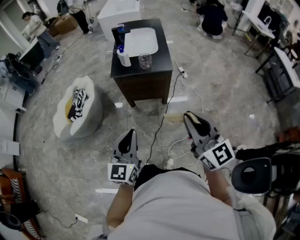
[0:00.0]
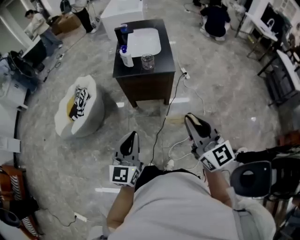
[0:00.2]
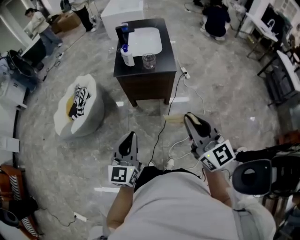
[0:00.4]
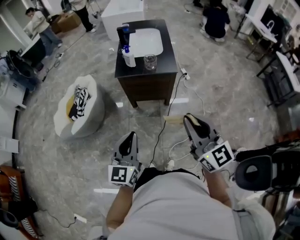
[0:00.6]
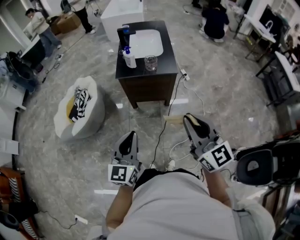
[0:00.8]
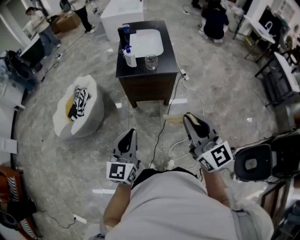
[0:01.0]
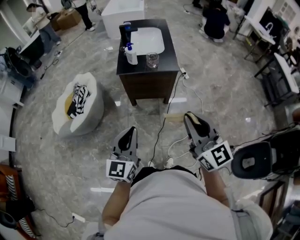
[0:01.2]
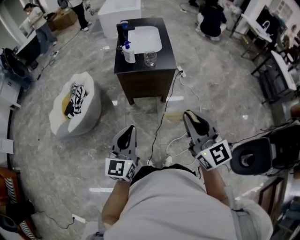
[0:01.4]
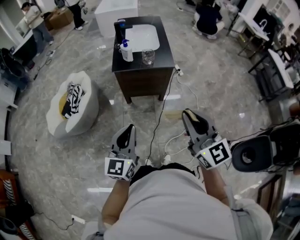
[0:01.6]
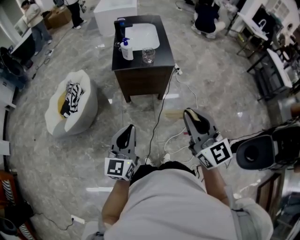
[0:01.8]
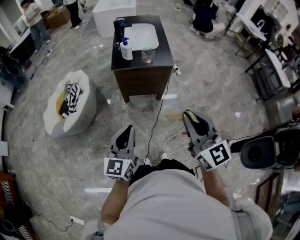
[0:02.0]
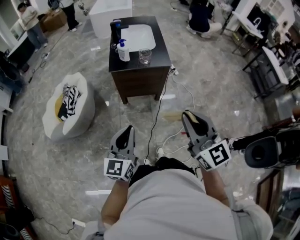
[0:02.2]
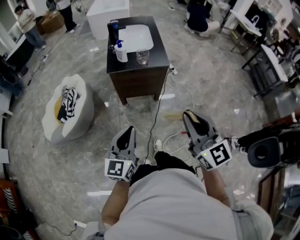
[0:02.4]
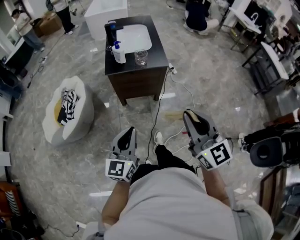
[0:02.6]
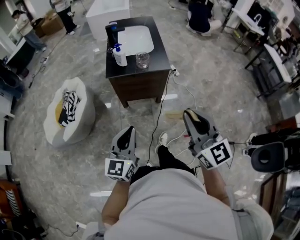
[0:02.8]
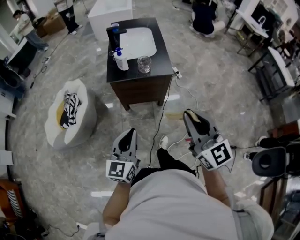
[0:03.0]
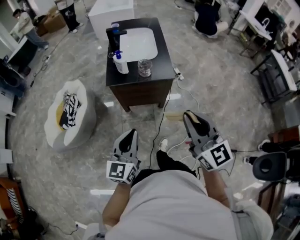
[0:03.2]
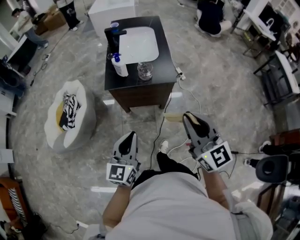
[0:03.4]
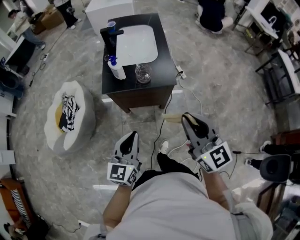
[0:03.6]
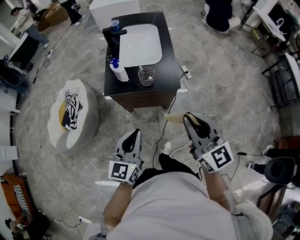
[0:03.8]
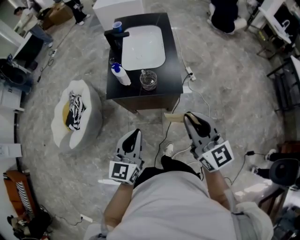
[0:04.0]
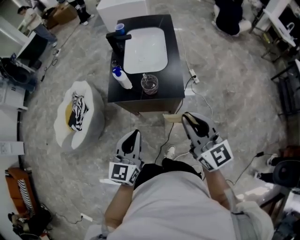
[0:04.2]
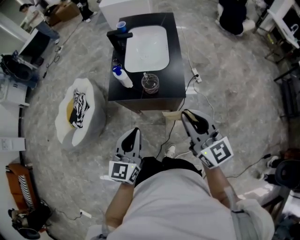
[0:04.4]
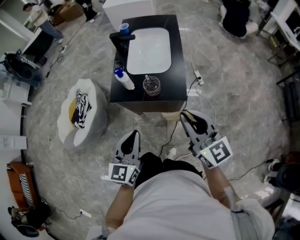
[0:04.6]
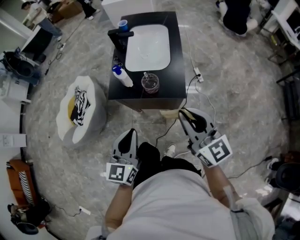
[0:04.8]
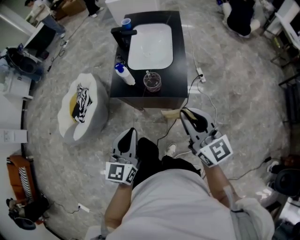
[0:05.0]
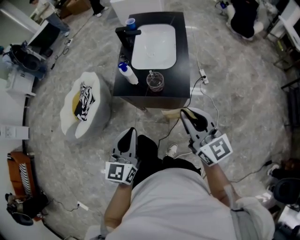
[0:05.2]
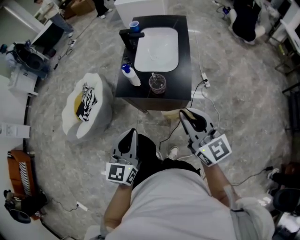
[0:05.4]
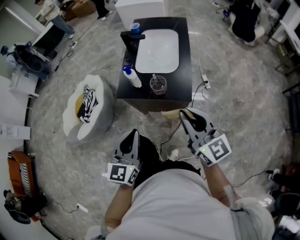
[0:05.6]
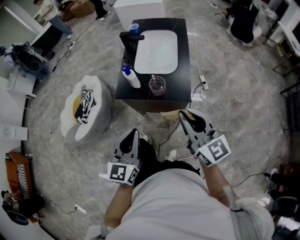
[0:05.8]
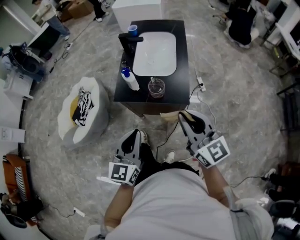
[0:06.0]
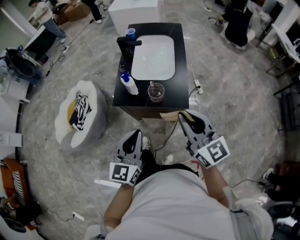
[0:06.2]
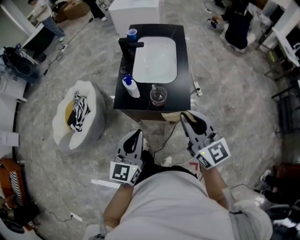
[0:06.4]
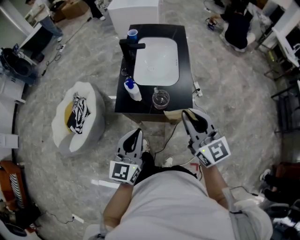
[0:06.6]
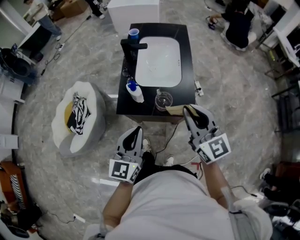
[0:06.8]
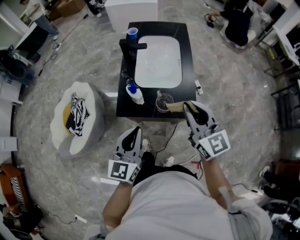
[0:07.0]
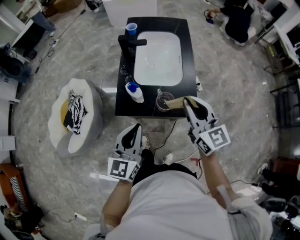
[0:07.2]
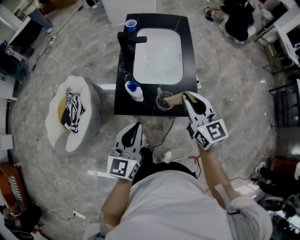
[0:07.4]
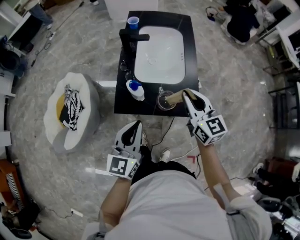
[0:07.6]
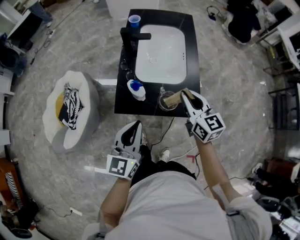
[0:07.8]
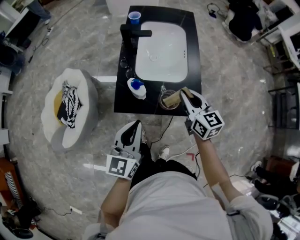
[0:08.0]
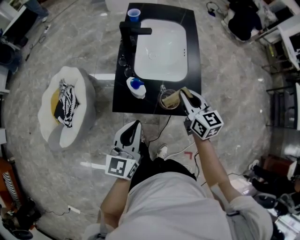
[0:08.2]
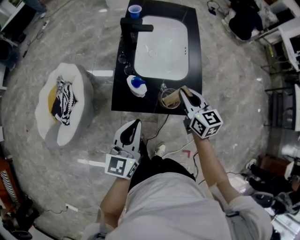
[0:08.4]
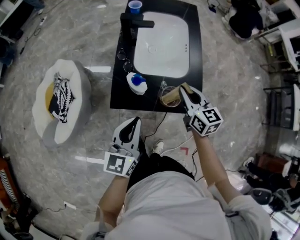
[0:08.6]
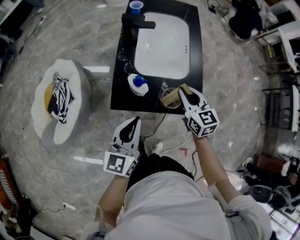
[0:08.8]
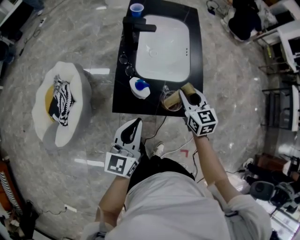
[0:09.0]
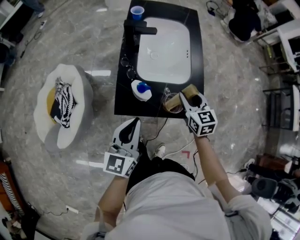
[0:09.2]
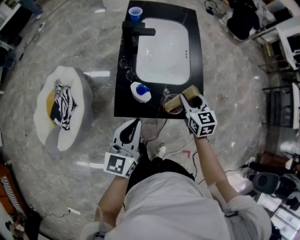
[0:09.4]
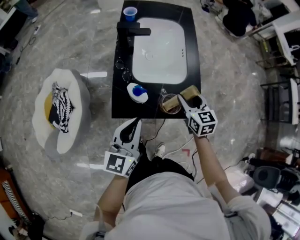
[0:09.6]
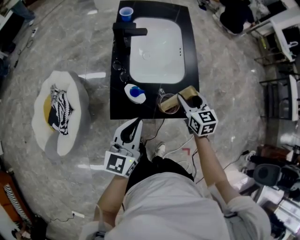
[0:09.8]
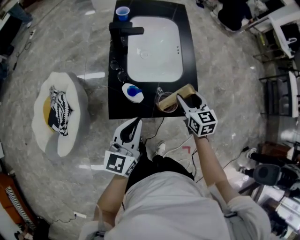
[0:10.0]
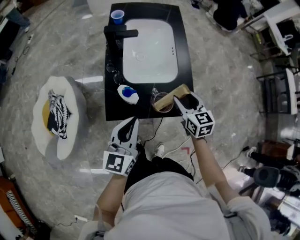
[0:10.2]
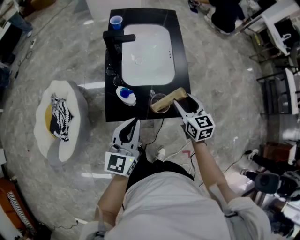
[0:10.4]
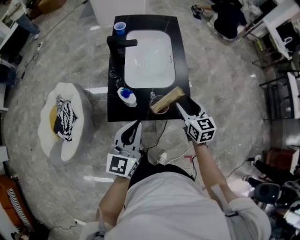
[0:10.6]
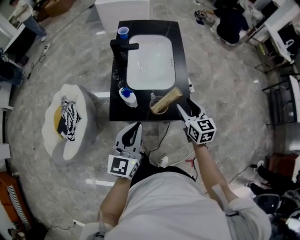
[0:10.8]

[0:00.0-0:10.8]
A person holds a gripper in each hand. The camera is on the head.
0:00.0 to 0:01.6: The two grippers go approximately 5 cm to the left.
0:01.6 to 0:03.0: Both grippers travel together forward, about 10 cm.
0:03.0 to 0:04.6: Both grippers travel together forward, approximately 25 cm.
0:04.6 to 0:06.2: The grippers move only a little.
0:06.2 to 0:07.8: The left gripper is displaced forward and to the left by some 15 cm. The right gripper goes some 25 cm forward and downward.
0:07.8 to 0:09.2: The right gripper is displaced downward by roughly 10 cm, and opens, while the left gripper moves some 5 cm.
0:09.2 to 0:10.8: The left gripper heads to the right, covering approximately 5 cm. Meanwhile the right gripper is displaced to the right and backward by about 10 cm, and opens up.

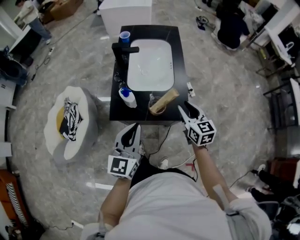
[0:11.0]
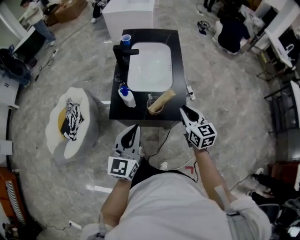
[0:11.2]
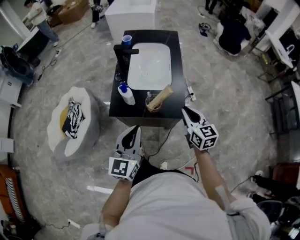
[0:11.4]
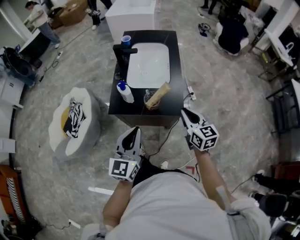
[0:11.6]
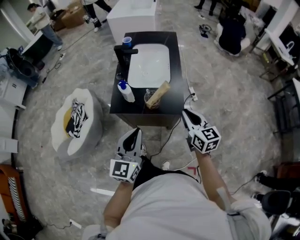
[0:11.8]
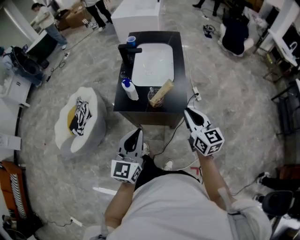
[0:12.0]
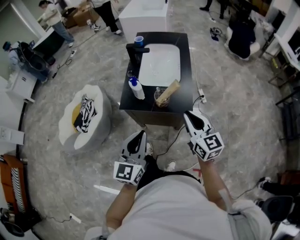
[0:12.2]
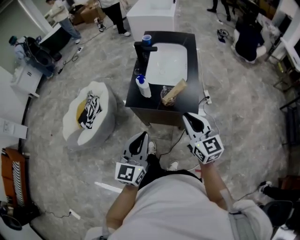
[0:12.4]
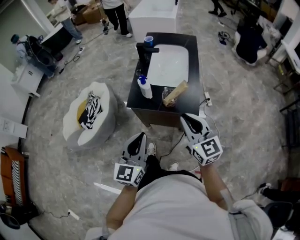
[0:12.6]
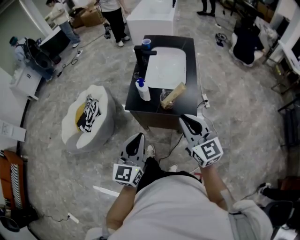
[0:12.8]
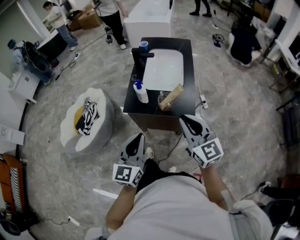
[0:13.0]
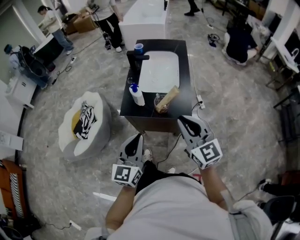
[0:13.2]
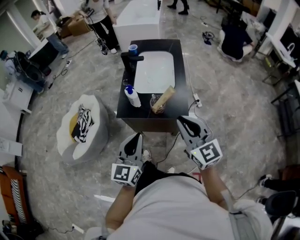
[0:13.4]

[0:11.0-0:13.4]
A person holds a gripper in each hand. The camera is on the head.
0:11.0 to 0:12.2: The left gripper travels backward by roughly 15 cm. The right gripper travels backward and upward by some 15 cm, and closes its fingers.
0:12.2 to 0:13.4: The right gripper travels upward by some 5 cm.

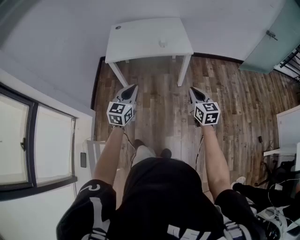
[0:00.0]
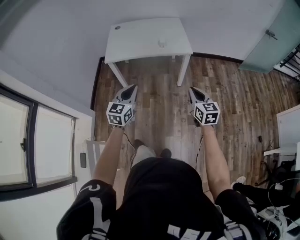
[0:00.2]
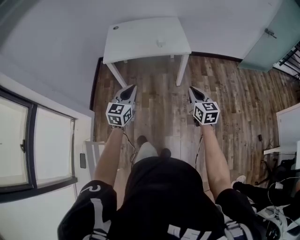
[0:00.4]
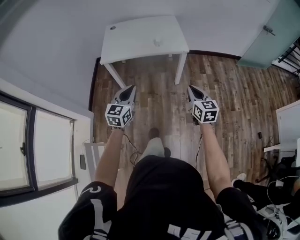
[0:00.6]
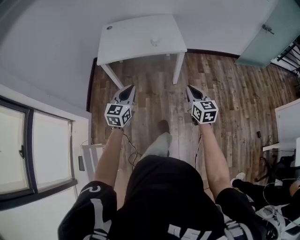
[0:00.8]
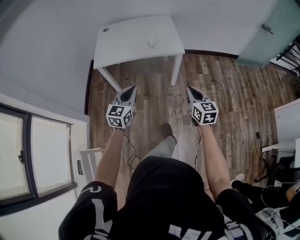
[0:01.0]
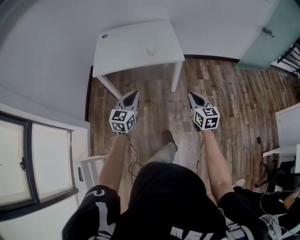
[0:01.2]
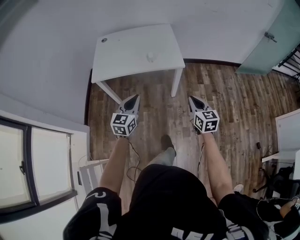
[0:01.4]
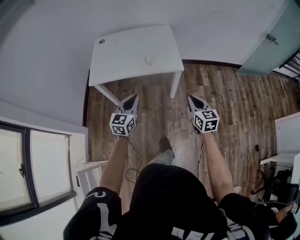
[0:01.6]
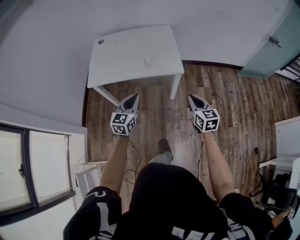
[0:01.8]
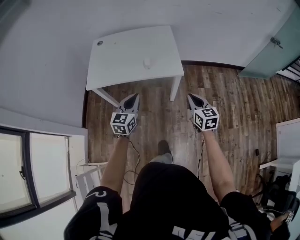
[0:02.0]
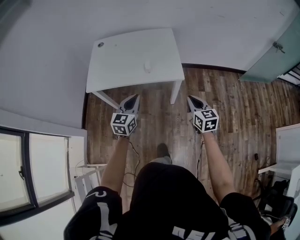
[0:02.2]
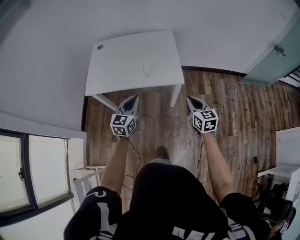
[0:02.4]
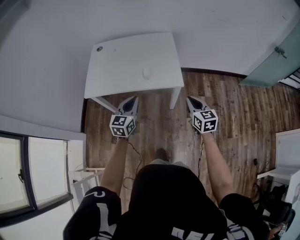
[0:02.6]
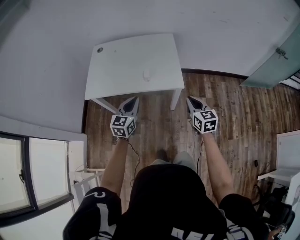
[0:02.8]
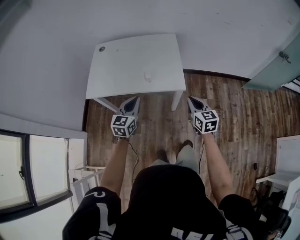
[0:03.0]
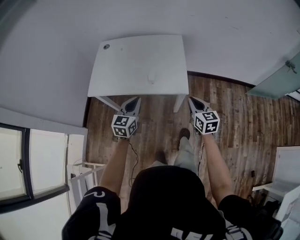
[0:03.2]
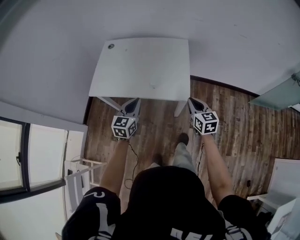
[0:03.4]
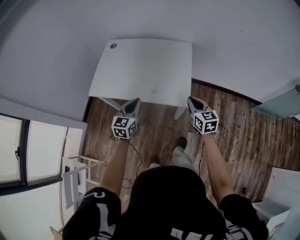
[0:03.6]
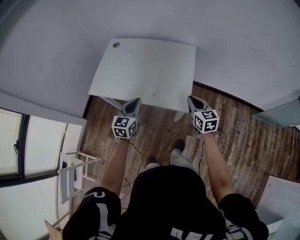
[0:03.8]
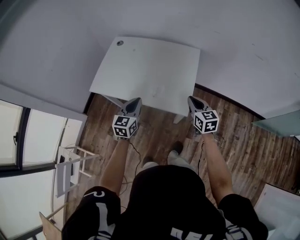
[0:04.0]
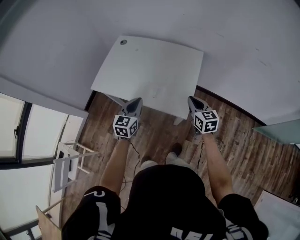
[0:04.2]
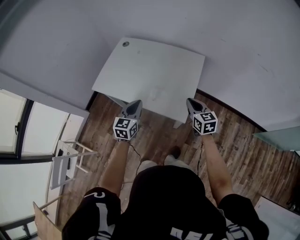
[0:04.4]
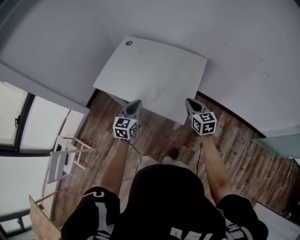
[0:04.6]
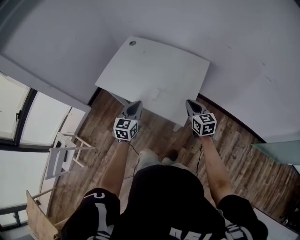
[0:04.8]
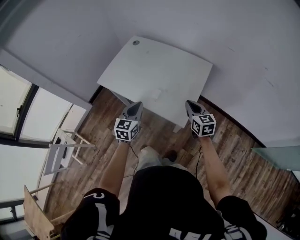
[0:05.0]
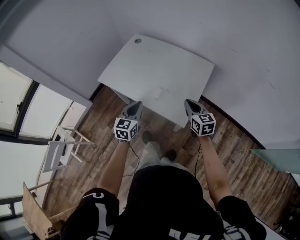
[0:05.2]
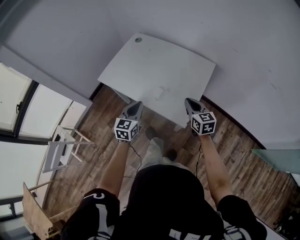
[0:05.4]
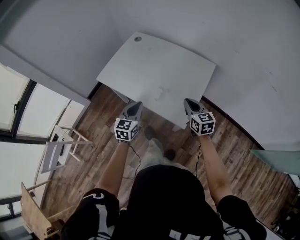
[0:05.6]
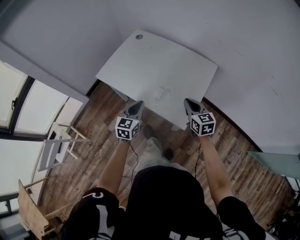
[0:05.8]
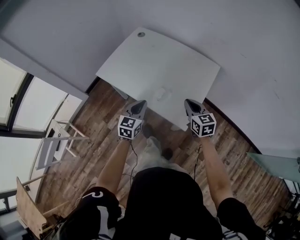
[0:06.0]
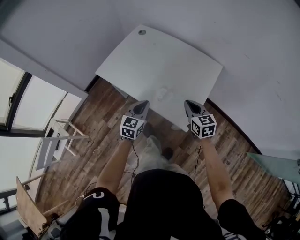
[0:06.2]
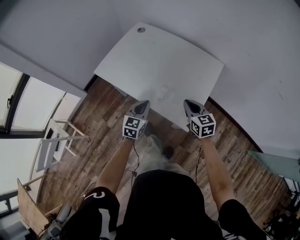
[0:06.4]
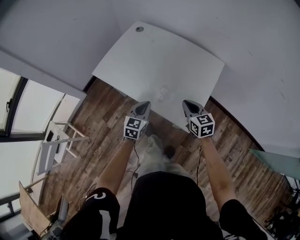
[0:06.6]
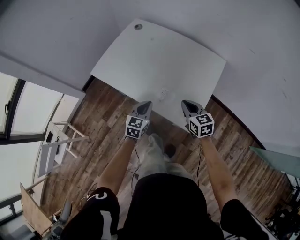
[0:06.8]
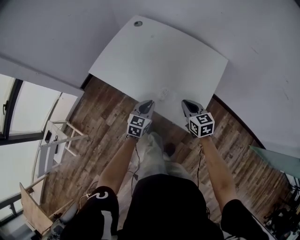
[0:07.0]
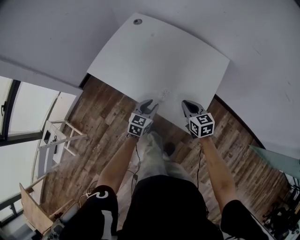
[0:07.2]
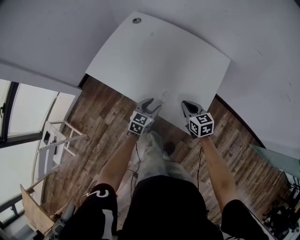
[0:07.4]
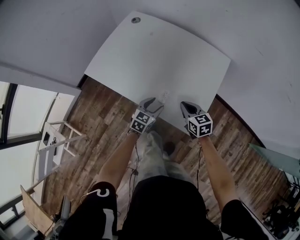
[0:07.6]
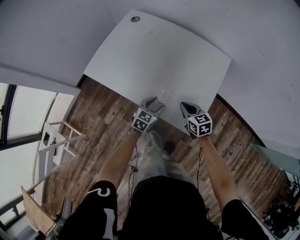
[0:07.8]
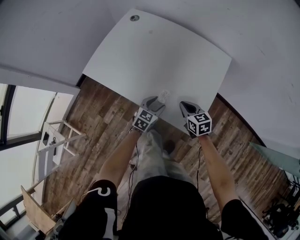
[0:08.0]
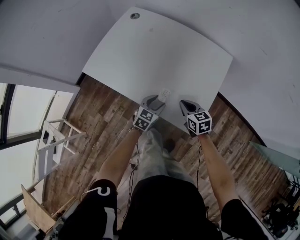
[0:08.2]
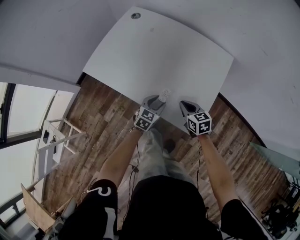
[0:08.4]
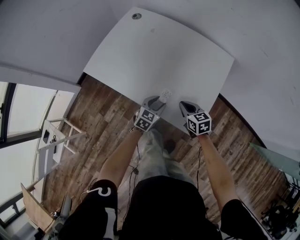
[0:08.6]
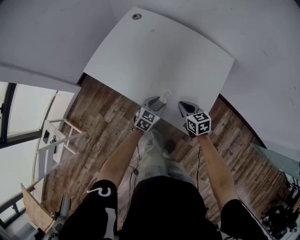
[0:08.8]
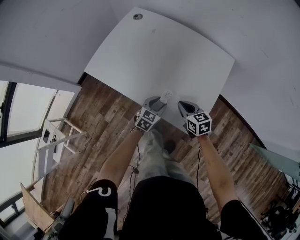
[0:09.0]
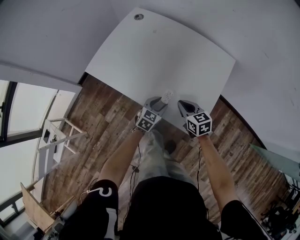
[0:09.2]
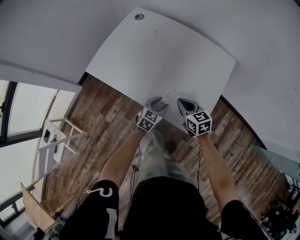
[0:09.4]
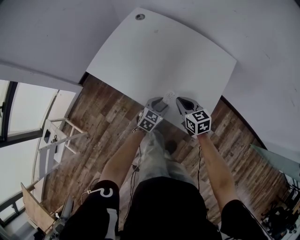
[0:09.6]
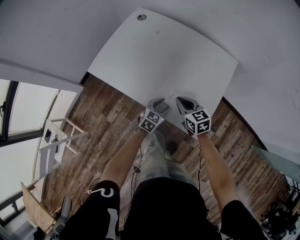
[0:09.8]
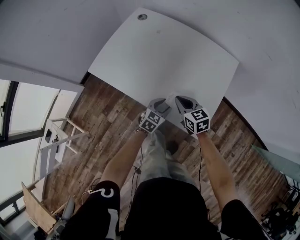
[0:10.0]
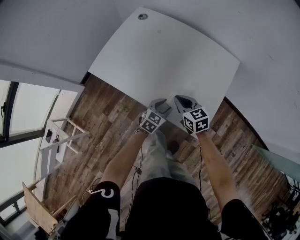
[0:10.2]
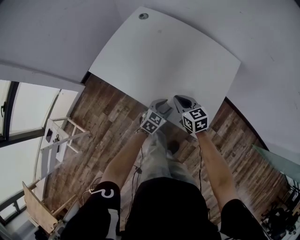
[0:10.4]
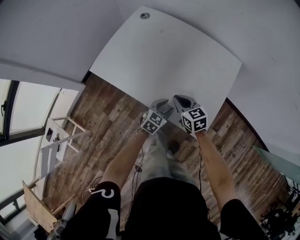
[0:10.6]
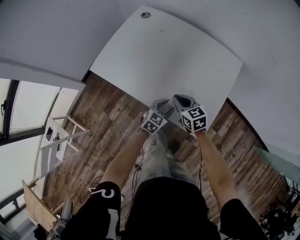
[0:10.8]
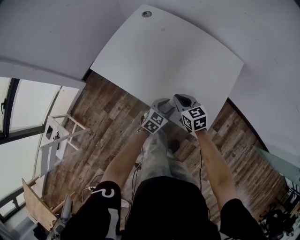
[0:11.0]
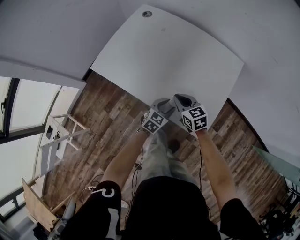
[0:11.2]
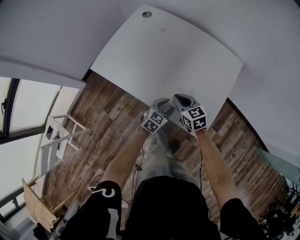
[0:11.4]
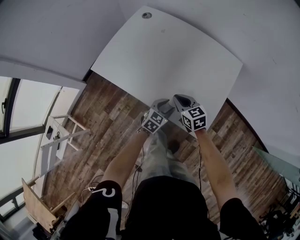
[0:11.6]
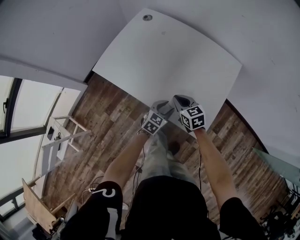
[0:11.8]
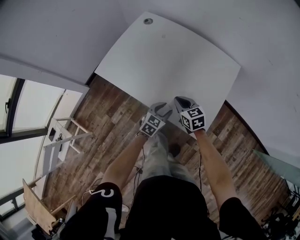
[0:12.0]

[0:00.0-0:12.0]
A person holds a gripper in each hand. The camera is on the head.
0:00.0 to 0:01.6: Both grippers travel together forward and to the right, roughly 20 cm.
0:01.6 to 0:03.0: The two grippers go approximately 15 cm forward.
0:03.0 to 0:04.4: The left gripper goes approximately 15 cm forward and to the right, and turns by about 20 degrees, while the right gripper shifts some 25 cm forward, and rotates about 20 degrees.
0:04.4 to 0:06.0: The left gripper shifts some 5 cm downward. Meanwhile the right gripper heads forward, covering about 5 cm.
0:06.0 to 0:07.6: Both grippers travel together downward, about 15 cm. The left gripper swivels some 20 degrees, and opens up.
0:07.6 to 0:09.0: The grippers make only small movements.
0:09.0 to 0:10.4: The right gripper moves to the left, approximately 5 cm.
0:10.4 to 0:12.0: The grippers move only a little.
